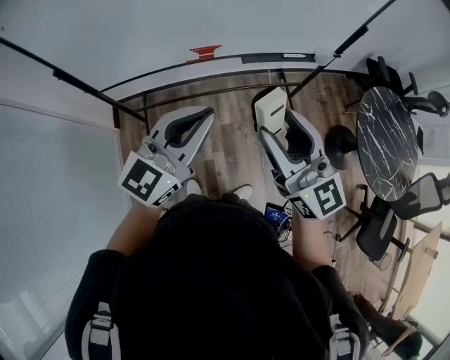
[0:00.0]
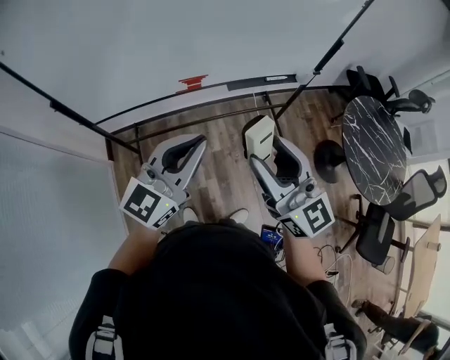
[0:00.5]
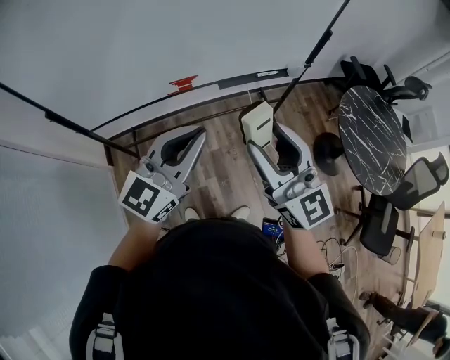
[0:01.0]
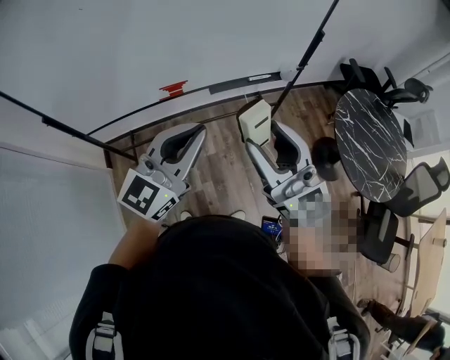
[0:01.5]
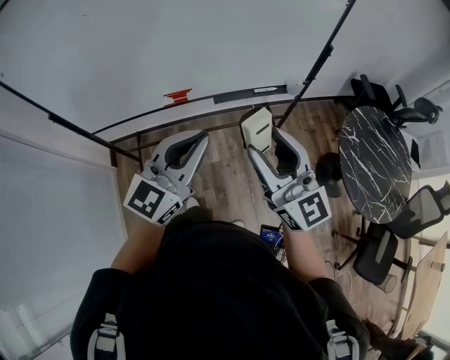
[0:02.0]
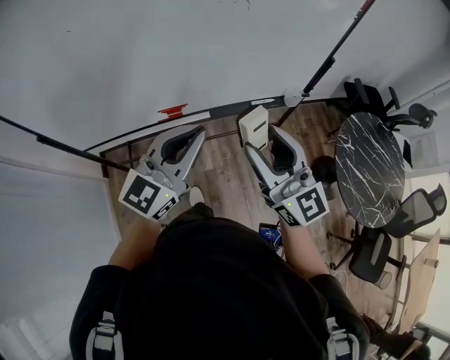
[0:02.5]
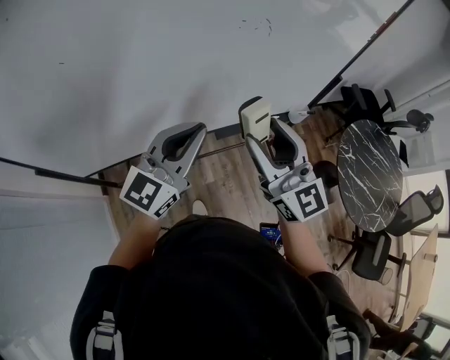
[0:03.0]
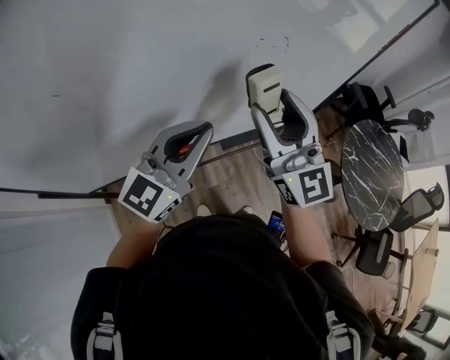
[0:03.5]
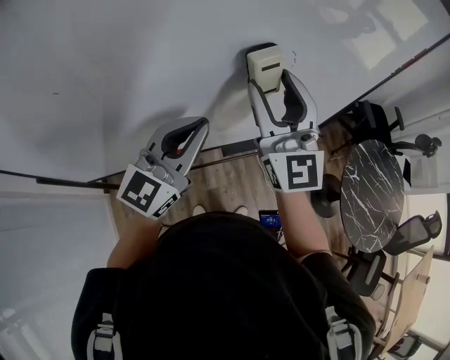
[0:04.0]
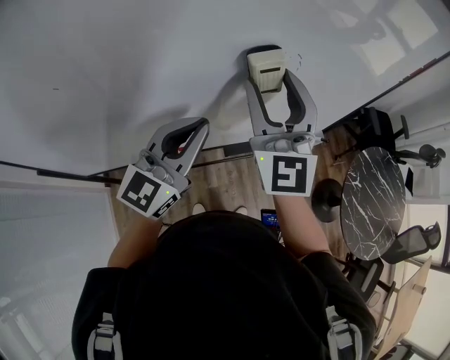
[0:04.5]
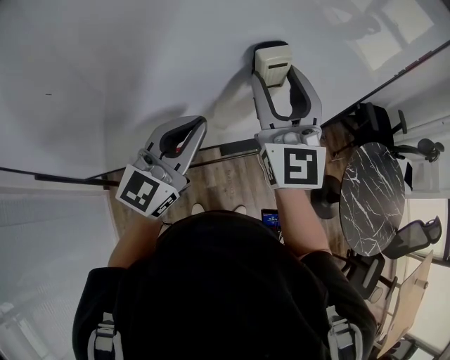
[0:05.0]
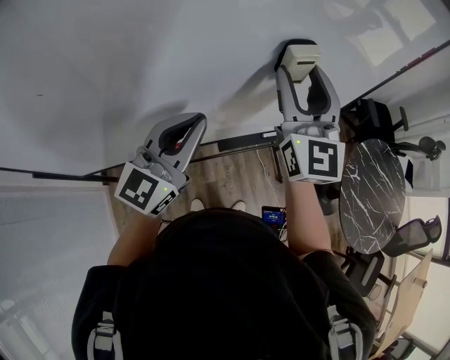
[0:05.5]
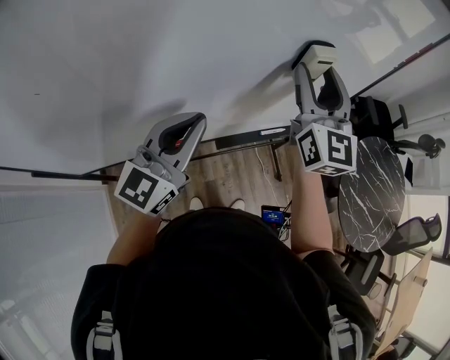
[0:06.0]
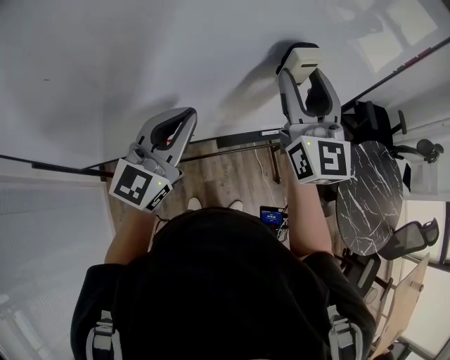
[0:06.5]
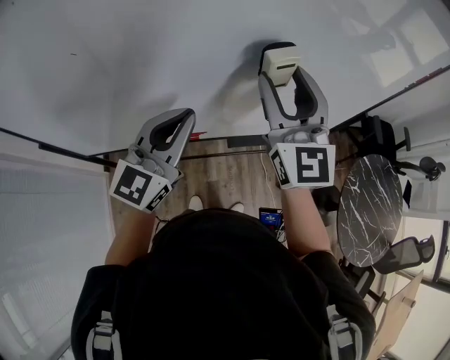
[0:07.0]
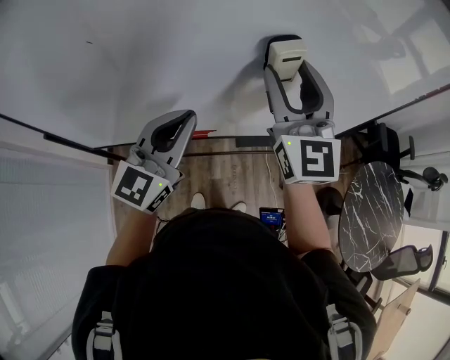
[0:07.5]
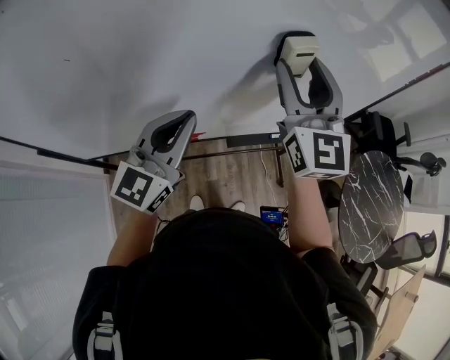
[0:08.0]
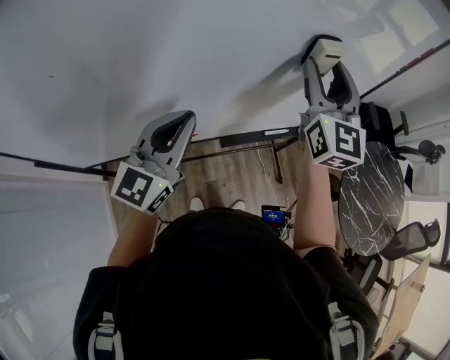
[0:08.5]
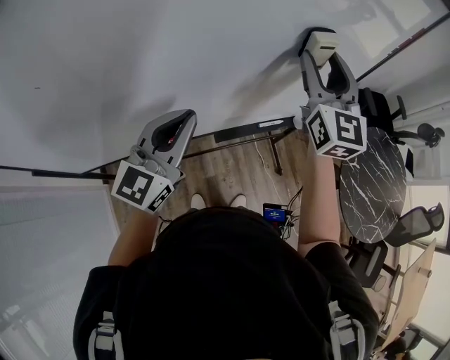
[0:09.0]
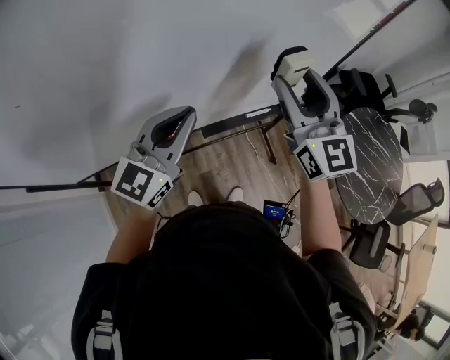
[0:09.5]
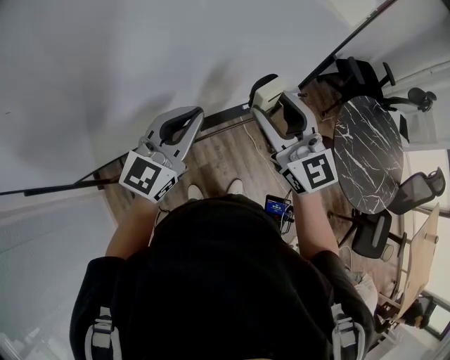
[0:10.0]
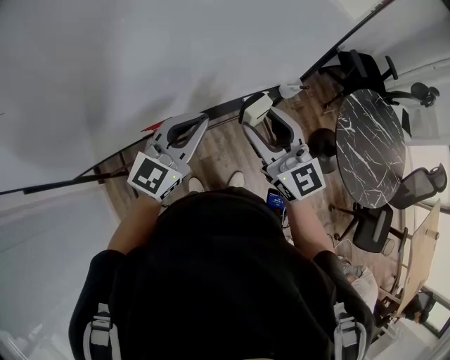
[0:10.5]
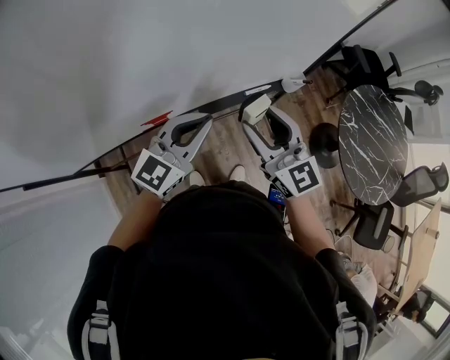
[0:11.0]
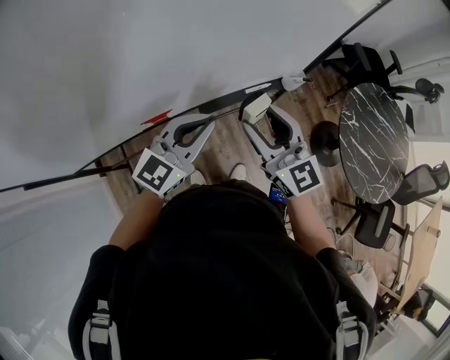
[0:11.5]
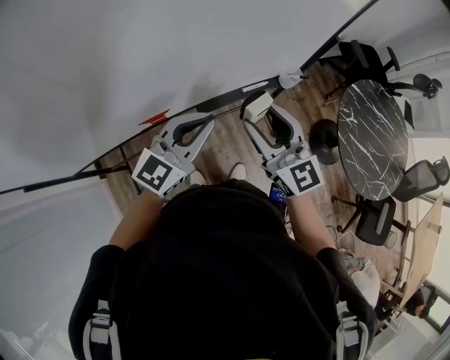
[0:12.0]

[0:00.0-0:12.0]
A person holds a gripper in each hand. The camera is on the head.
0:00.0 to 0:02.0: Both grippers move to the right and forward, some 15 cm.
0:02.0 to 0:04.0: The left gripper moves forward and to the left, approximately 30 cm. Meanwhile the right gripper heads forward, covering some 35 cm, and swivels approximately 20 degrees.
0:04.0 to 0:06.0: The right gripper goes approximately 15 cm to the right and forward.
0:06.0 to 0:08.0: The left gripper heads to the left, covering approximately 5 cm, while the right gripper is displaced to the left by roughly 10 cm.
0:08.0 to 0:10.0: The right gripper goes about 20 cm downward, to the right and backward. The left gripper heads to the right and downward, covering roughly 15 cm.
0:10.0 to 0:12.0: The two grippers go roughly 5 cm downward.

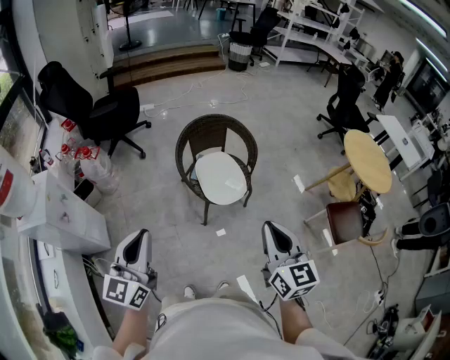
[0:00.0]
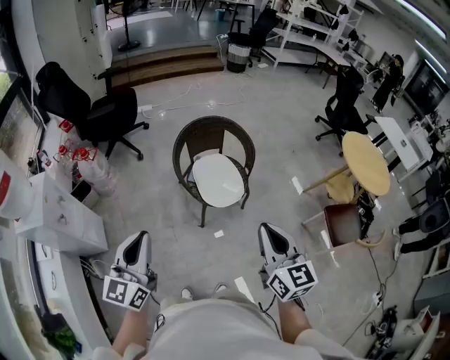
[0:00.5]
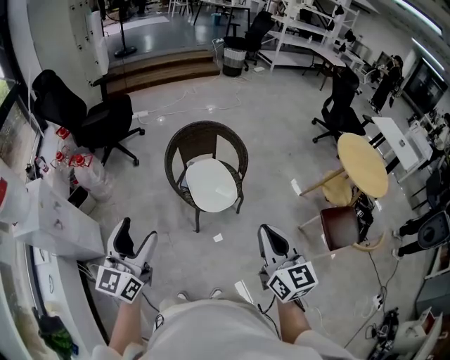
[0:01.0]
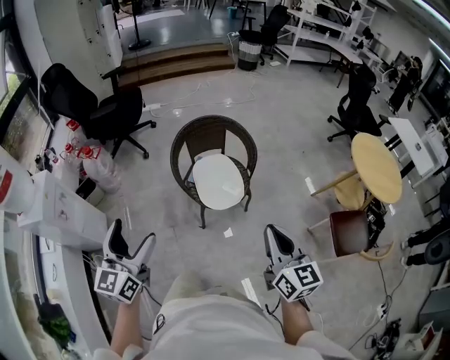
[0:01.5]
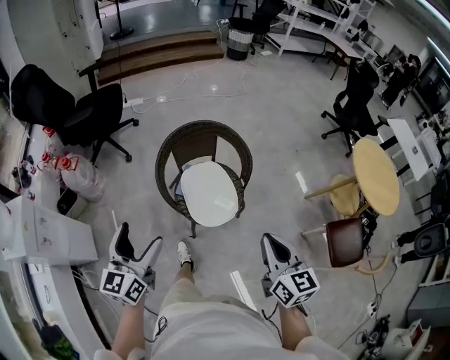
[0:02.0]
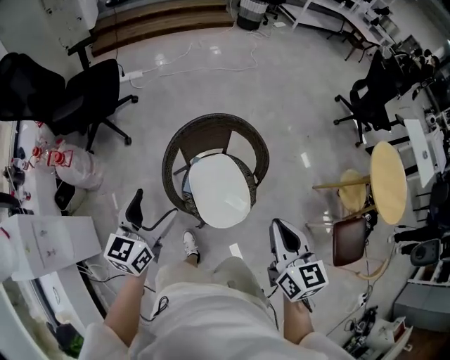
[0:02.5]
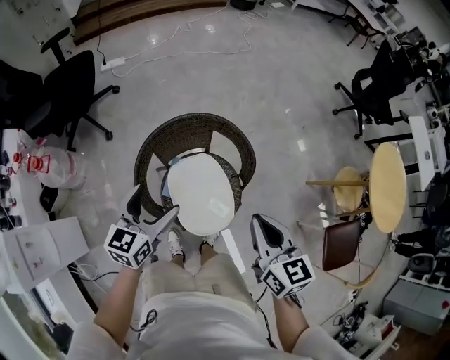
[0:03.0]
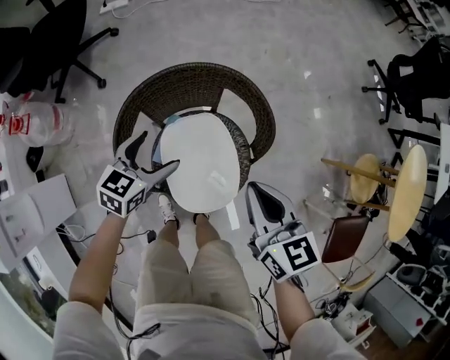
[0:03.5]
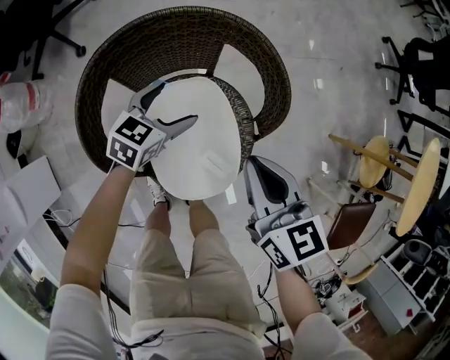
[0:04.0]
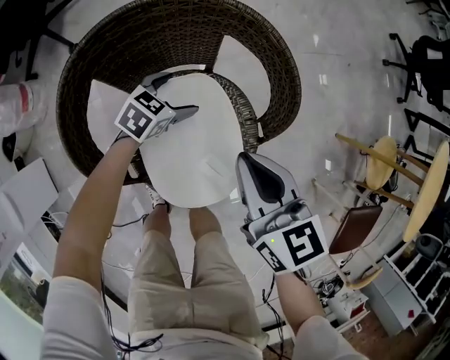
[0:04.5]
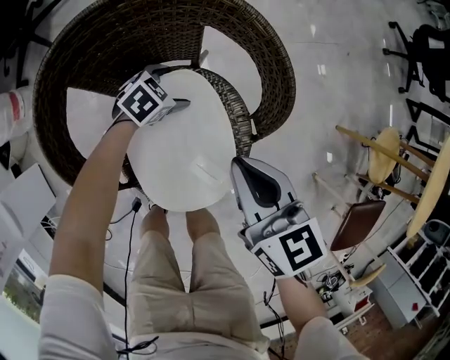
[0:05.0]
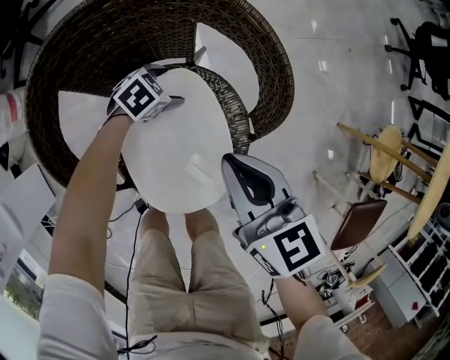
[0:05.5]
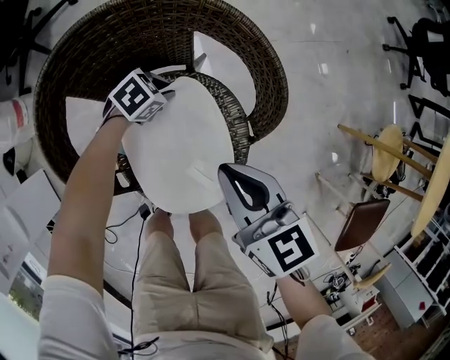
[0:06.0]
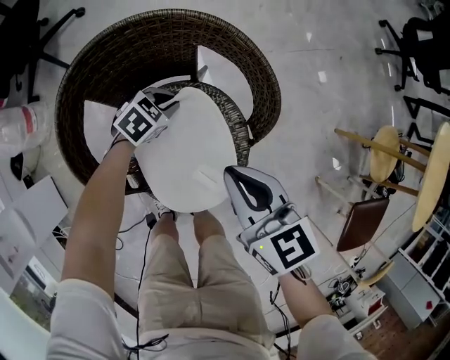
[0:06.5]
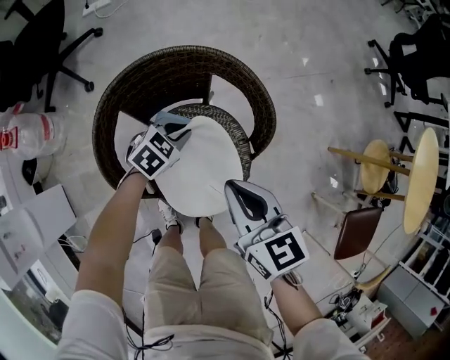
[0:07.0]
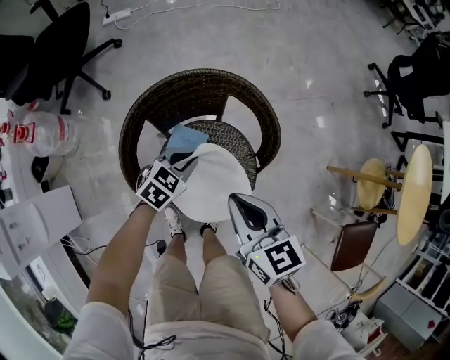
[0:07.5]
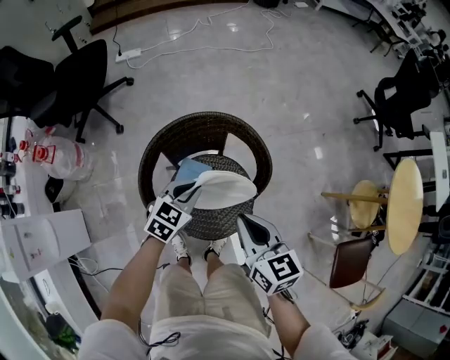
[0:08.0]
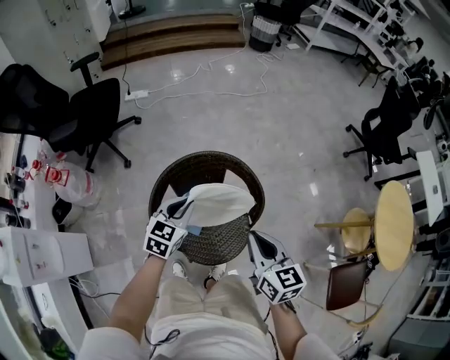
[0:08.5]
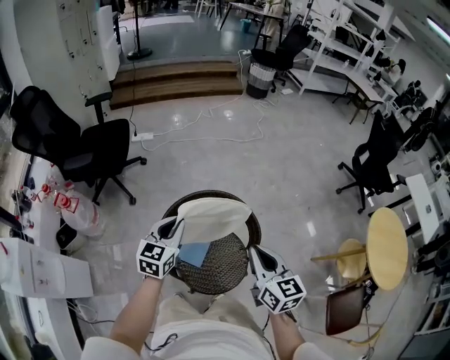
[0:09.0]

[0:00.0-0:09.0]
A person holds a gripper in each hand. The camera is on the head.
0:00.0 to 0:02.0: The left gripper is displaced forward by some 20 cm, and opens its fingers; the right gripper travels forward, to the right and downward by roughly 20 cm.
0:02.0 to 0:04.5: The left gripper heads downward and forward, covering about 70 cm, and tips its fingers downward by some 40 degrees. The right gripper heads forward and downward, covering approximately 50 cm, and rotates some 20 degrees.
0:04.5 to 0:07.0: The two grippers go about 10 cm upward. The left gripper closes up.
0:07.0 to 0:09.0: The left gripper is displaced upward by roughly 40 cm, and angles its fingers upward, by roughly 30 degrees; the right gripper moves upward, some 25 cm.

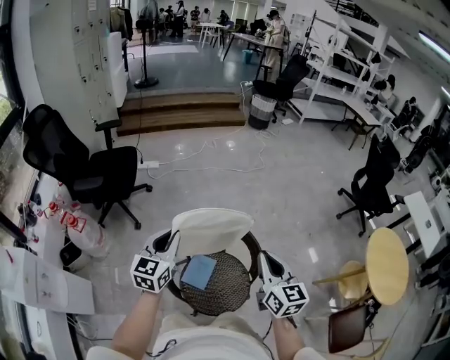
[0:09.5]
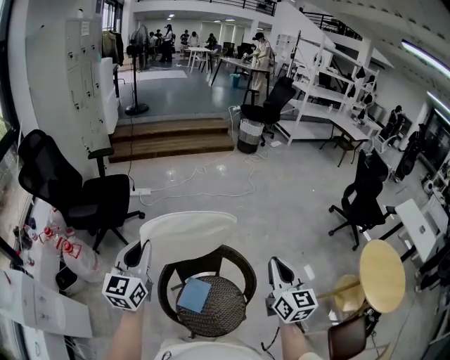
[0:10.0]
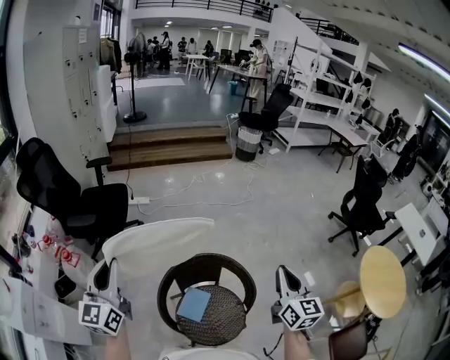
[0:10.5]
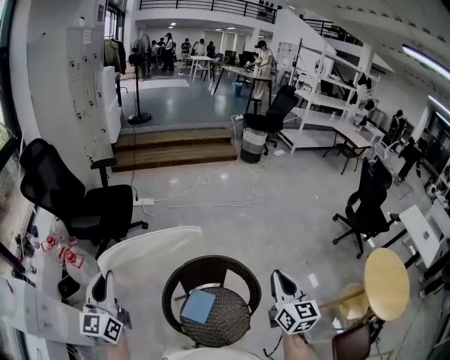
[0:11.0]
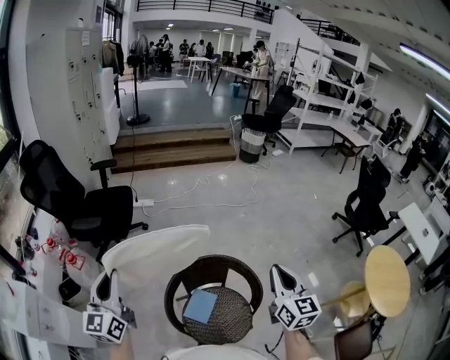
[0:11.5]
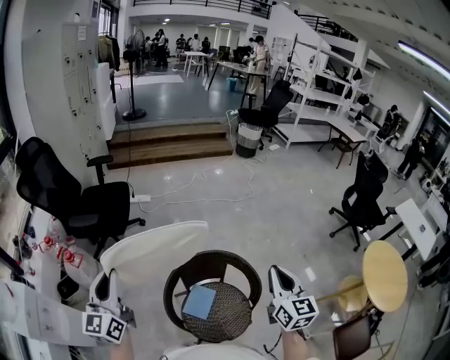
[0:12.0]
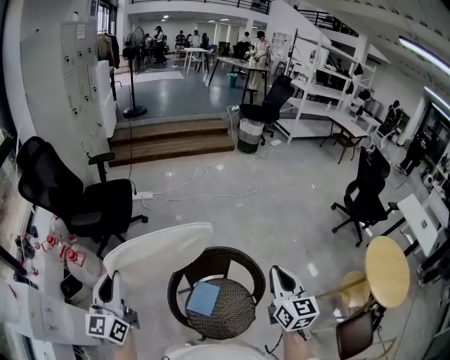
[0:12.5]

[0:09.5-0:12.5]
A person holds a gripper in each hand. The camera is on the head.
0:09.5 to 0:11.0: The left gripper is displaced to the left and upward by approximately 20 cm, and rotates some 30 degrees. Meanwhile the right gripper heads upward, covering approximately 5 cm.
0:11.0 to 0:12.5: The grippers move only a little.

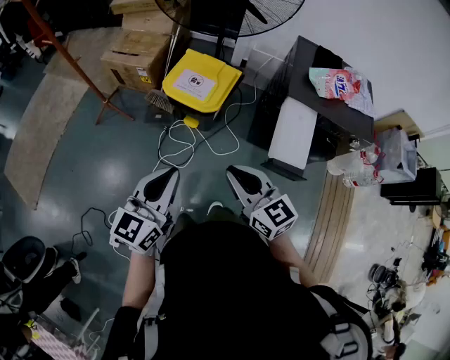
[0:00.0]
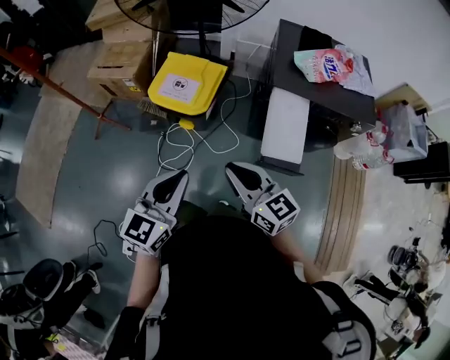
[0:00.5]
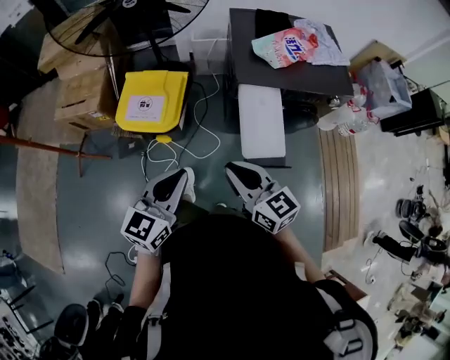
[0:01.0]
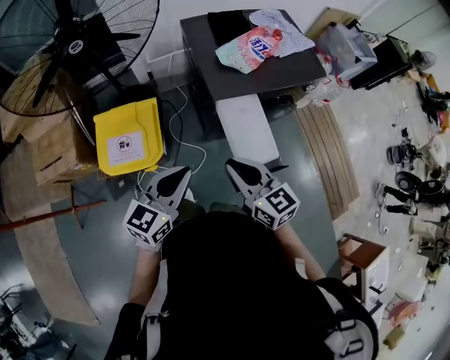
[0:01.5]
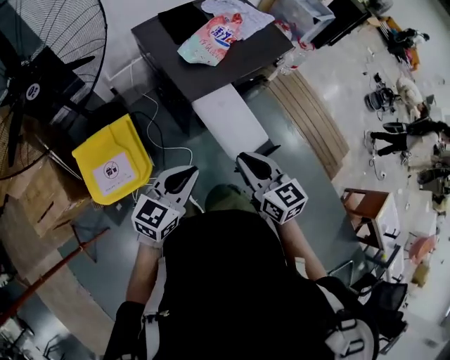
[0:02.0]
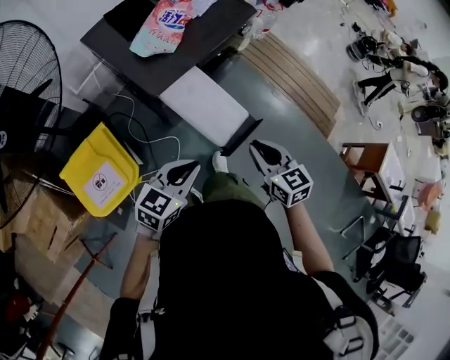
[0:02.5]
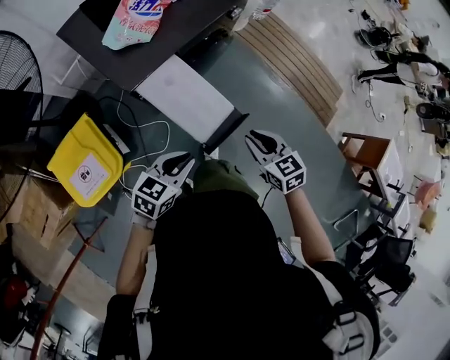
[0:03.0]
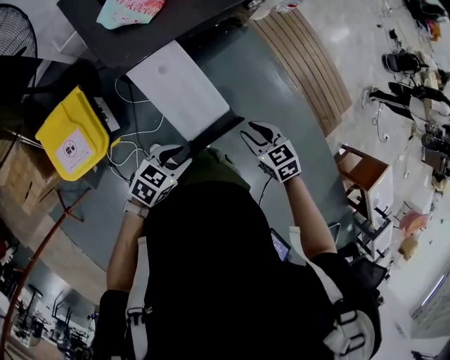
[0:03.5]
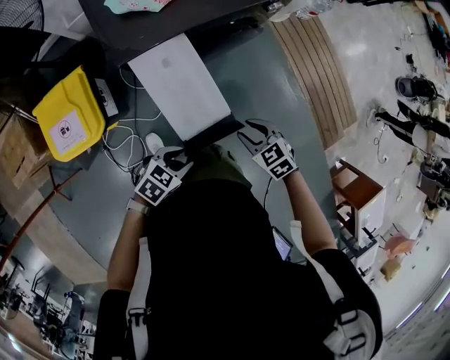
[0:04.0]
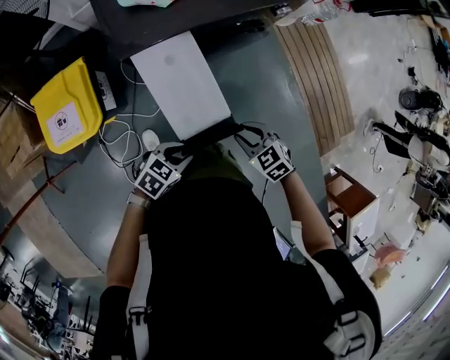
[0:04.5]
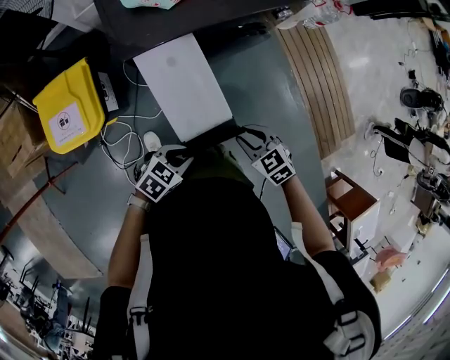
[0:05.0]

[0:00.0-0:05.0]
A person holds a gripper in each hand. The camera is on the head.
0:00.0 to 0:02.5: The right gripper moves about 30 cm, and turns by approximately 70 degrees. Meanwhile the left gripper moves about 35 cm, and rotates approximately 80 degrees.
0:02.5 to 0:05.0: Both grippers move downward, approximately 20 cm. The right gripper turns by about 50 degrees; the left gripper swivels approximately 30 degrees.
